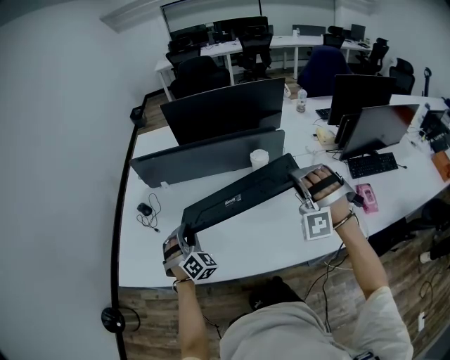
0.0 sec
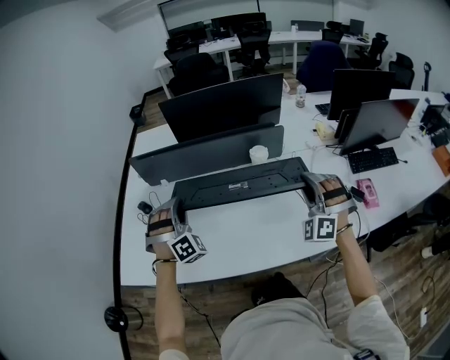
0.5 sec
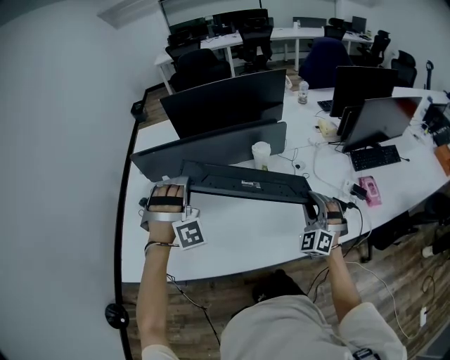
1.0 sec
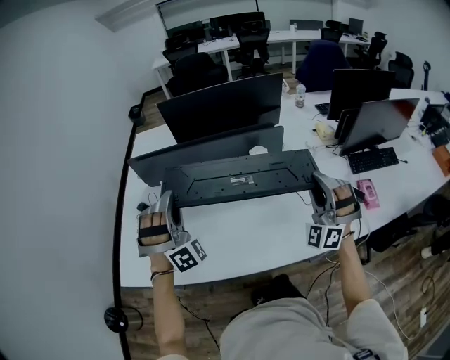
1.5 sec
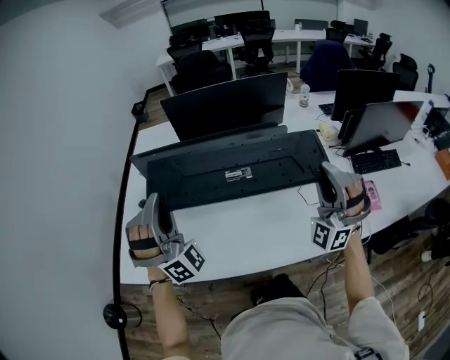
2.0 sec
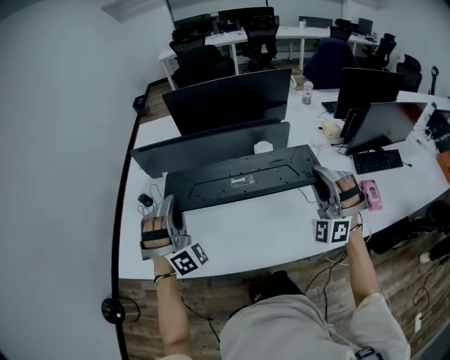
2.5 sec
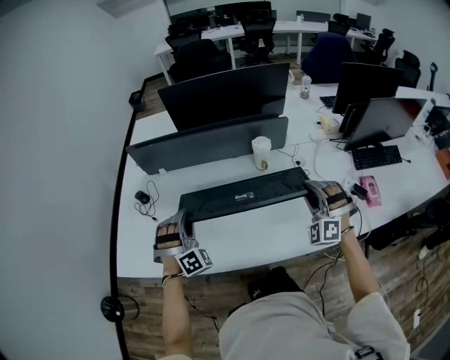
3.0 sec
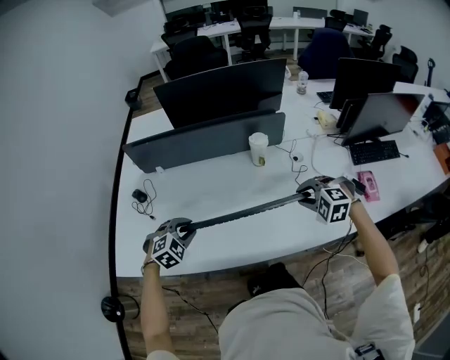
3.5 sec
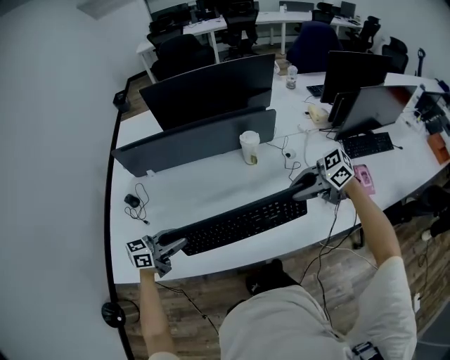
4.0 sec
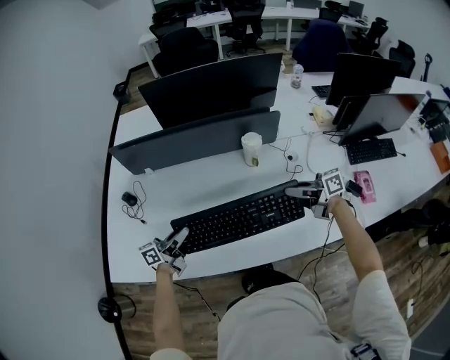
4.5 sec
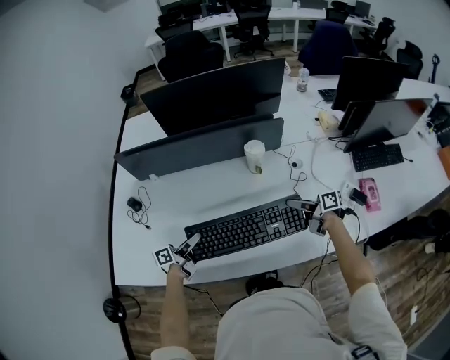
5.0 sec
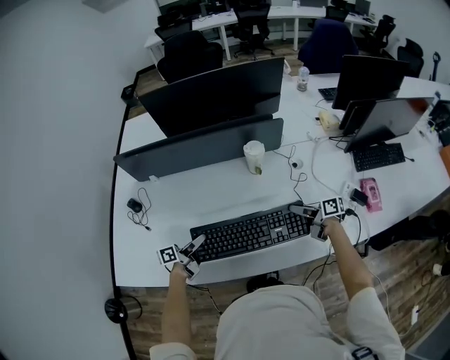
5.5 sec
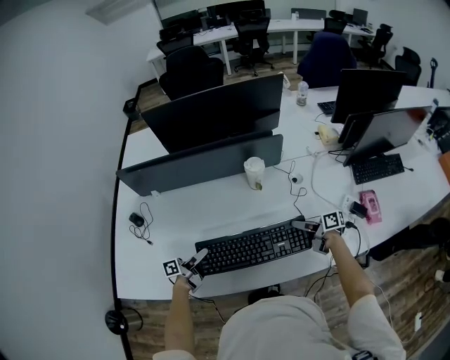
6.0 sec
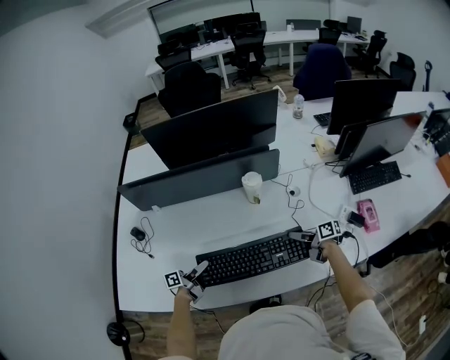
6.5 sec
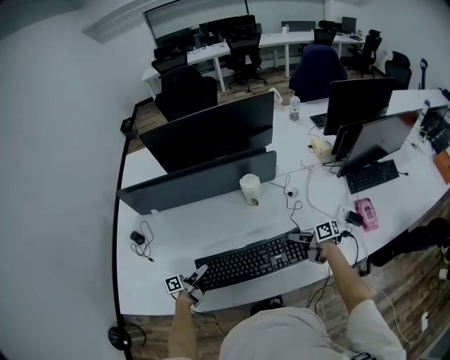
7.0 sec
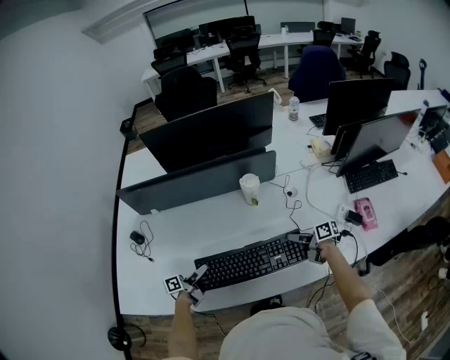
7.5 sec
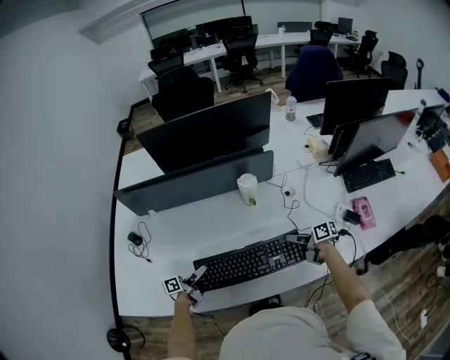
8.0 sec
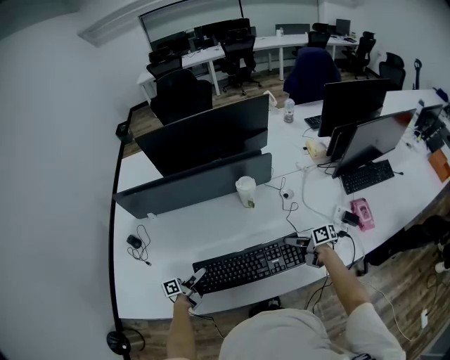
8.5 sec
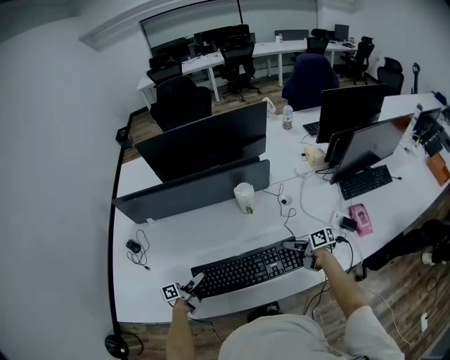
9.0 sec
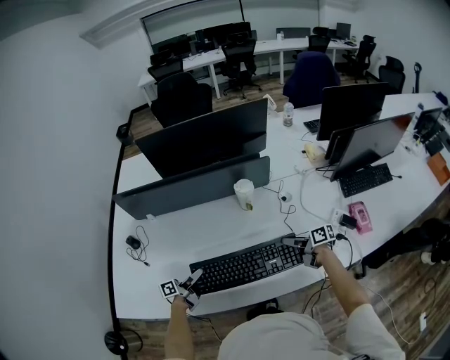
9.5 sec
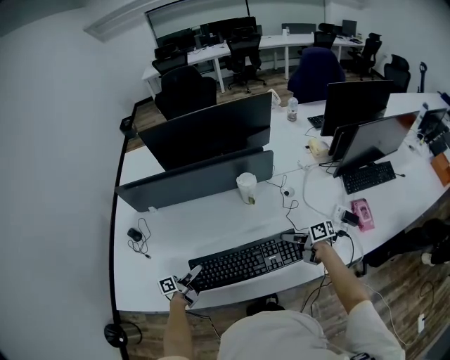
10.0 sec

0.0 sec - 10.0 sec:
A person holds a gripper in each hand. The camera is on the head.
0.0 sec - 2.0 sec: The left gripper goes approximately 25 cm upward, and angles its fingers upward, by about 30 degrees; the right gripper heads upward, covering approximately 10 cm, and angles its fingers upward, by about 30 degrees.
2.0 sec - 4.0 sec: Both grippers move downward, about 25 cm. The right gripper tilts its fingers roughly 40 degrees downward. Meanwhile the left gripper swivels some 130 degrees.
4.0 sec - 6.0 sec: The left gripper shifts approximately 10 cm downward, rolls counterclockwise, seen from behind, by roughly 50 degrees, and opens up, while the right gripper travels downward by approximately 20 cm, and rolls clockwise, seen from behind, by approximately 50 degrees.
6.0 sec - 10.0 sec: There are only small adjustments of the grippers.

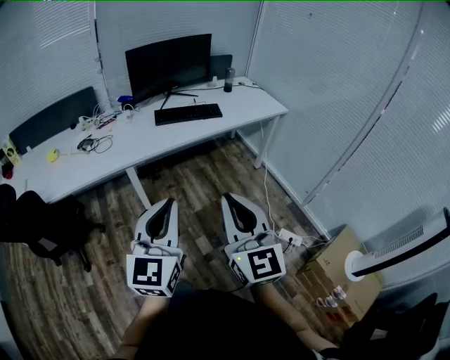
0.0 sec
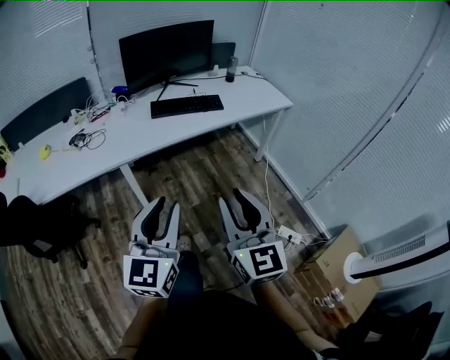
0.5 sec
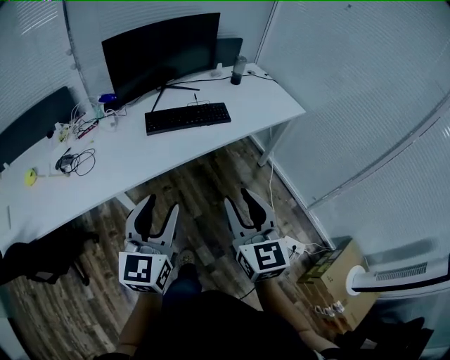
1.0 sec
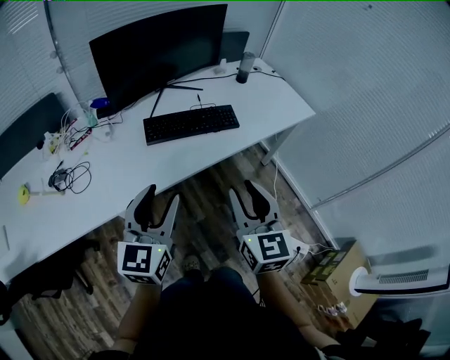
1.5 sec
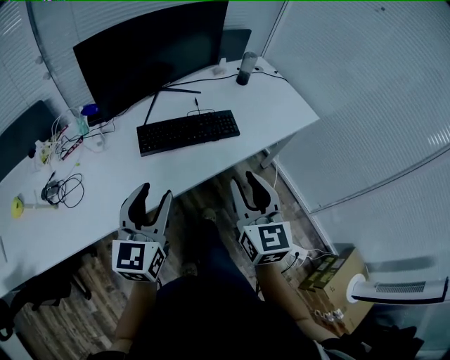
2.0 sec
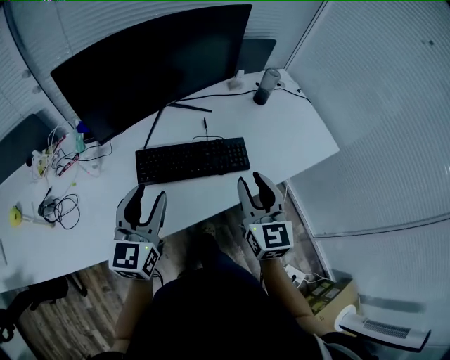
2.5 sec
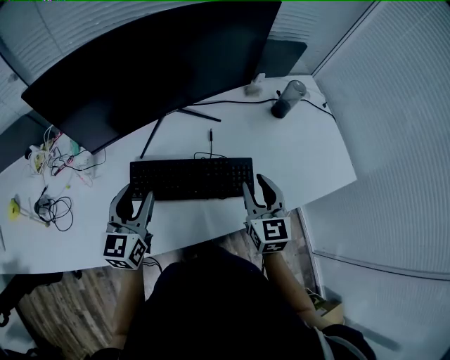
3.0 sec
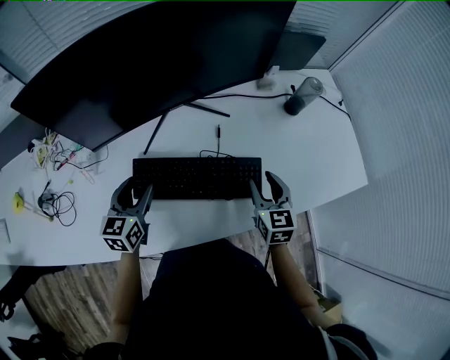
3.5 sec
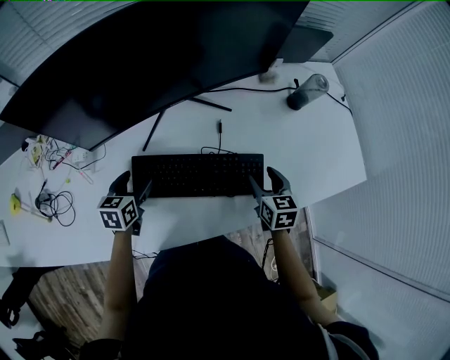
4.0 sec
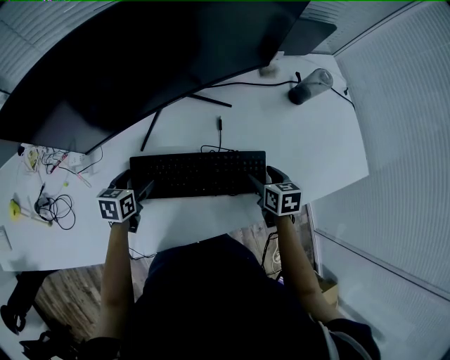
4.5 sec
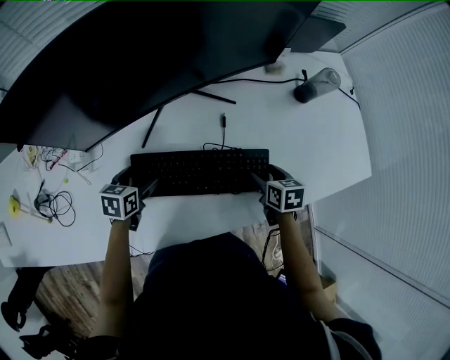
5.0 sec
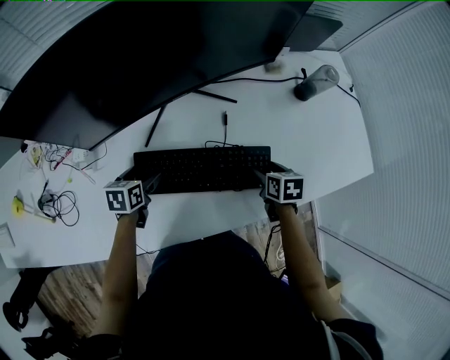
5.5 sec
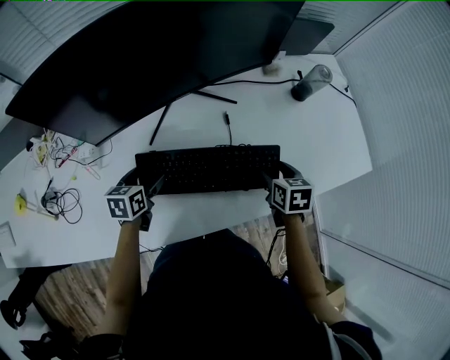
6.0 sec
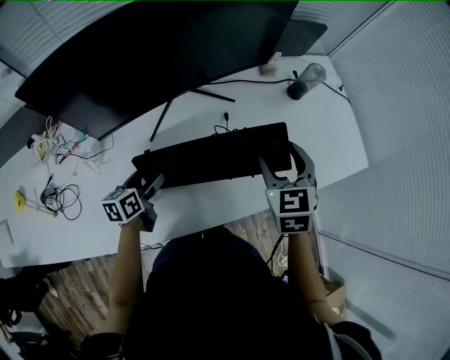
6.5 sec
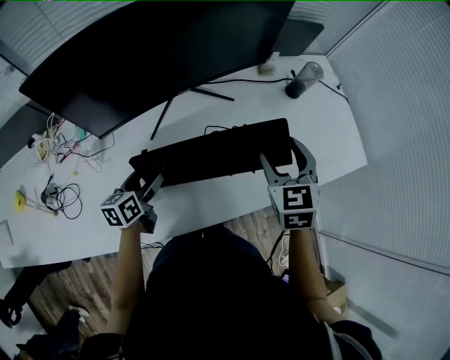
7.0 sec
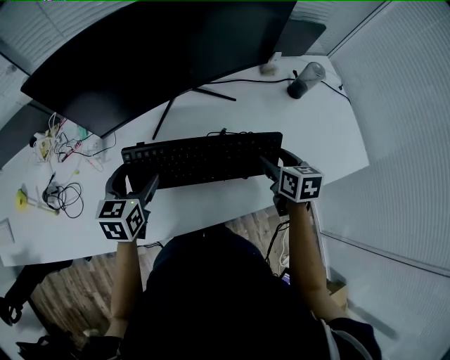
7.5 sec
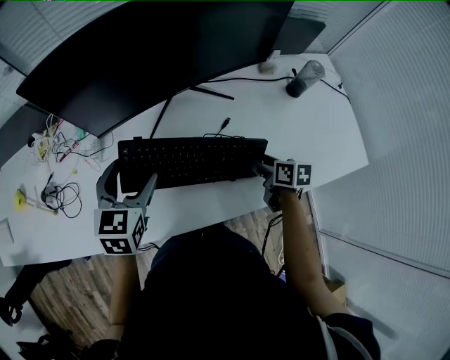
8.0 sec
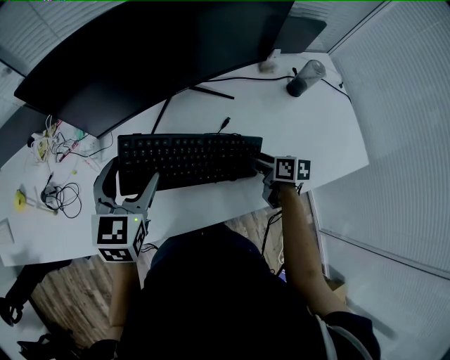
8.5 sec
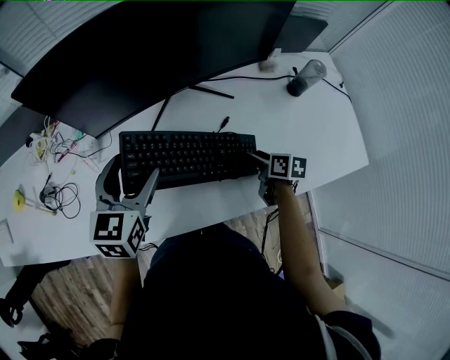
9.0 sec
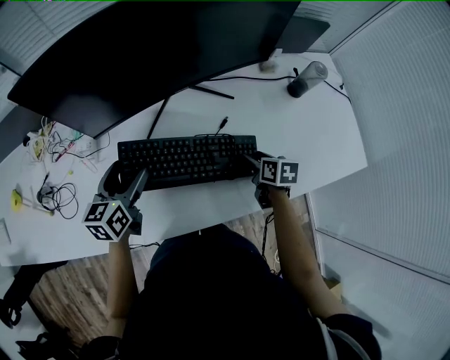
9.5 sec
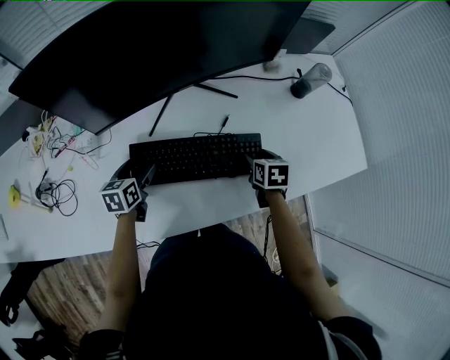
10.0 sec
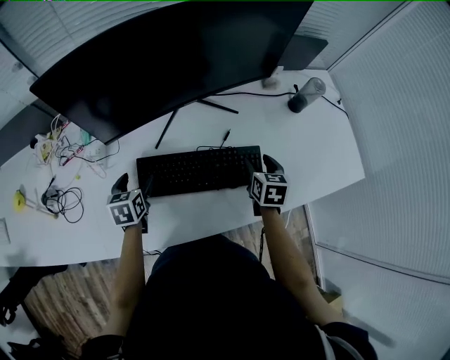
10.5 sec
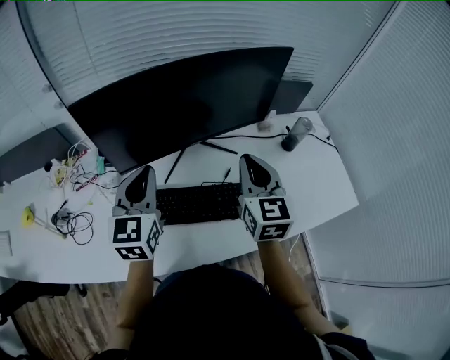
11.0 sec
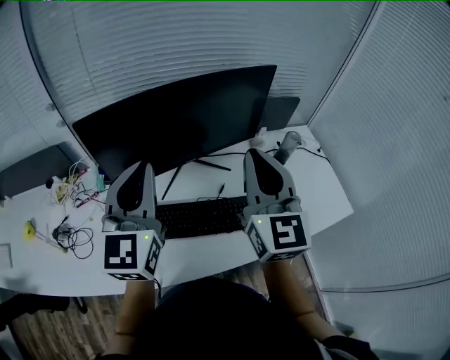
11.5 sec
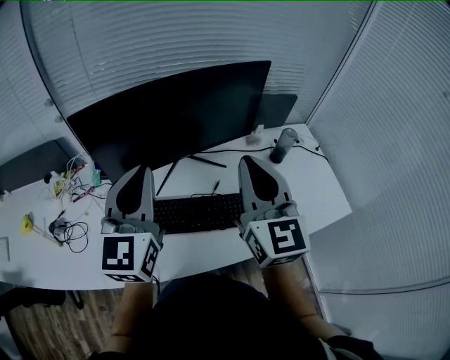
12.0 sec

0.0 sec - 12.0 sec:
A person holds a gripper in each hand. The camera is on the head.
0.0 sec - 2.0 sec: The pair of grippers is taken forward, some 50 cm. The left gripper opens. Meanwhile the right gripper opens up.
2.0 sec - 4.0 sec: Both grippers move forward and downward, roughly 40 cm. The left gripper angles its fingers downward, by some 40 degrees; the right gripper tips its fingers downward by approximately 30 degrees, and opens its fingers.
6.0 sec - 8.0 sec: The left gripper shifts about 15 cm upward, and swivels roughly 30 degrees, while the right gripper travels upward and back again, approximately 15 cm each way, and turns by approximately 20 degrees.
8.0 sec - 10.0 sec: The right gripper turns by roughly 30 degrees, while the left gripper shifts about 20 cm downward, and swivels approximately 30 degrees.
10.0 sec - 12.0 sec: The grippers both shift upward by about 40 cm. The left gripper tilts its fingers about 40 degrees upward, and closes up. Meanwhile the right gripper points its fingers roughly 60 degrees further upward, and closes its fingers.

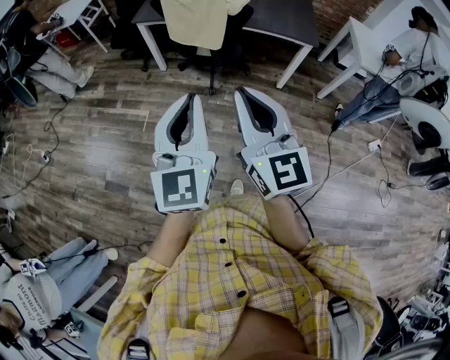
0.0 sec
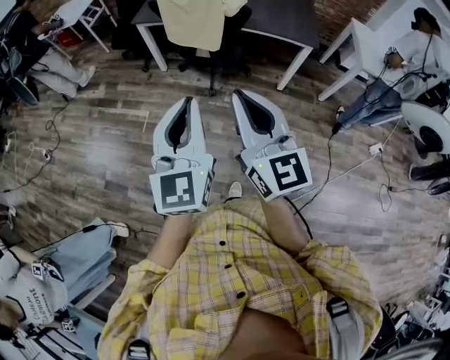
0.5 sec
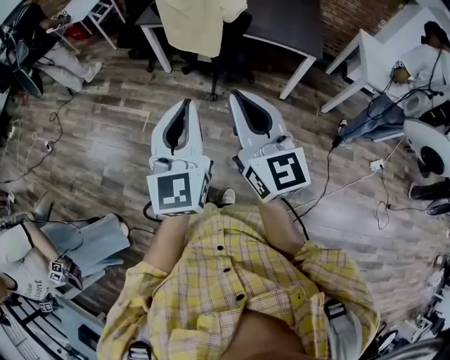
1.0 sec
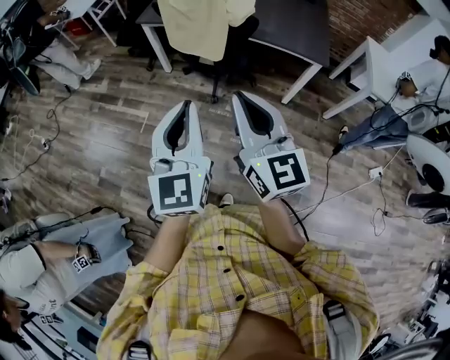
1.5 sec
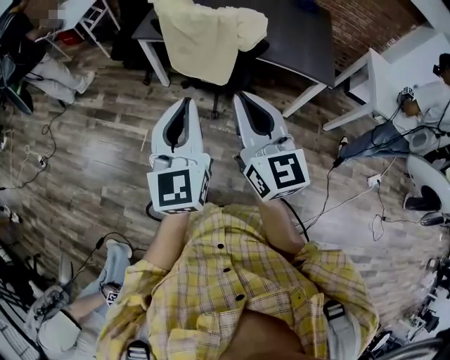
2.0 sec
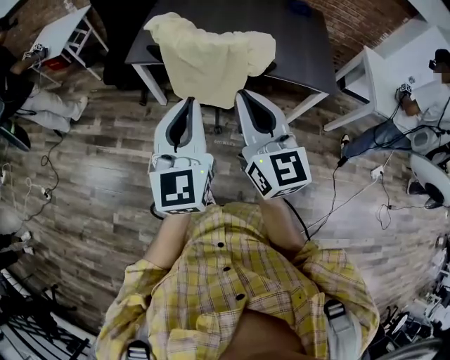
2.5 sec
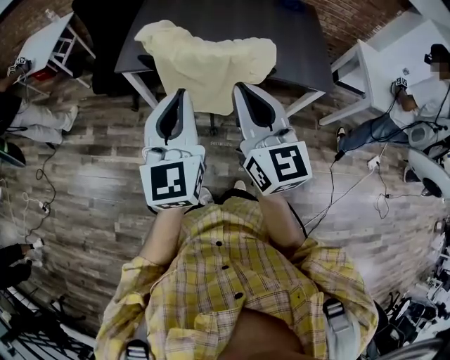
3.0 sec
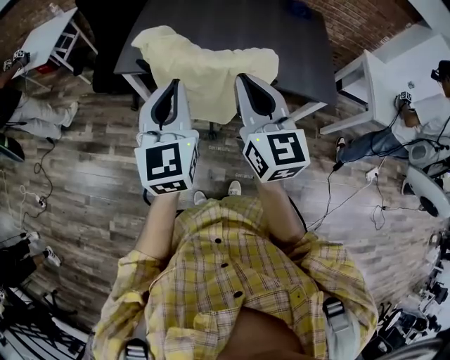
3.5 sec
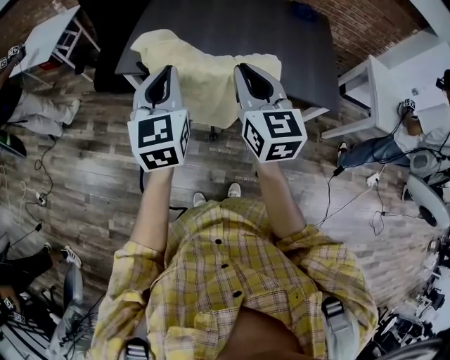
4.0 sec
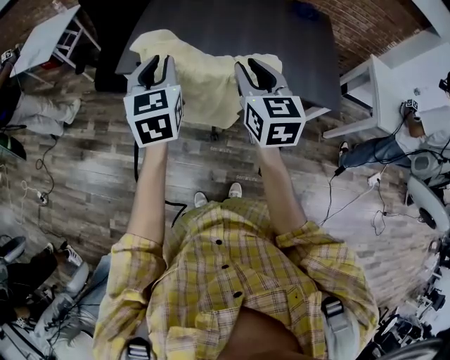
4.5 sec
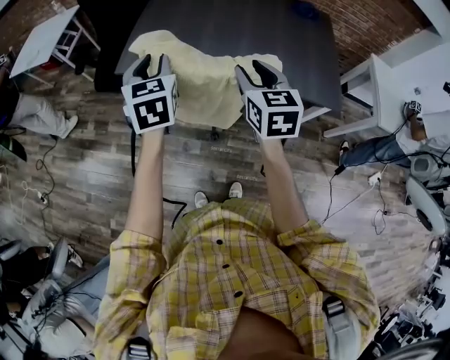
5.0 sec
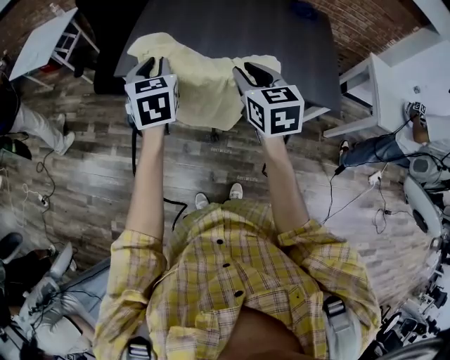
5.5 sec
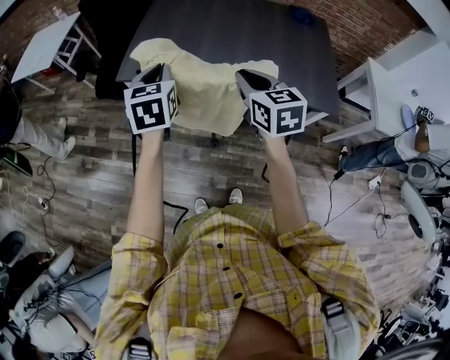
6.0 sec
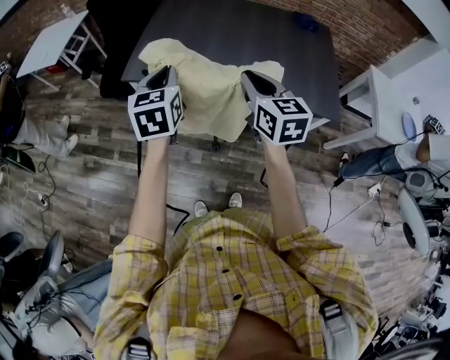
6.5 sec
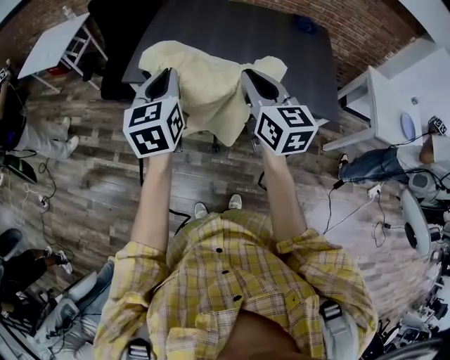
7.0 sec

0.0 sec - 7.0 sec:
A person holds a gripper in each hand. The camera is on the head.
0.0 sec - 2.0 sec: Both grippers travel together forward, roughly 25 cm.
2.0 sec - 3.5 sec: Both grippers move forward, approximately 25 cm.
3.5 sec - 5.0 sec: The left gripper moves forward, approximately 15 cm, rotates about 20 degrees, and opens its fingers. Meanwhile the right gripper travels forward and downward by roughly 10 cm, changes its angle by approximately 20 degrees, and opens its fingers.
5.0 sec - 7.0 sec: The right gripper goes some 5 cm upward, and closes its fingers. Meanwhile the left gripper goes some 5 cm backward, and closes.
